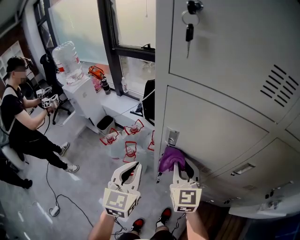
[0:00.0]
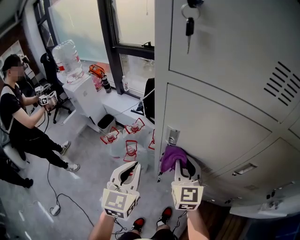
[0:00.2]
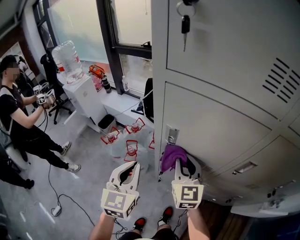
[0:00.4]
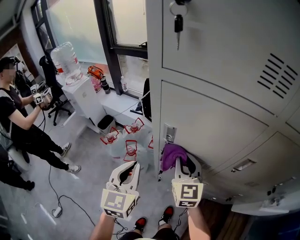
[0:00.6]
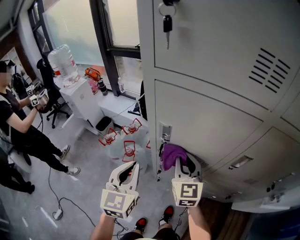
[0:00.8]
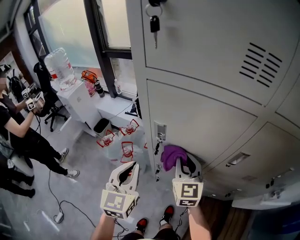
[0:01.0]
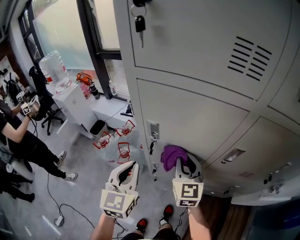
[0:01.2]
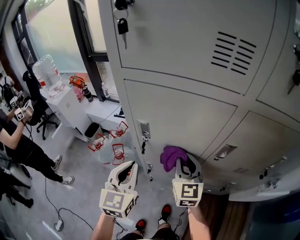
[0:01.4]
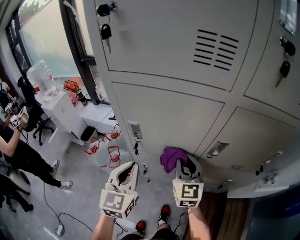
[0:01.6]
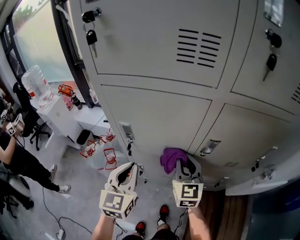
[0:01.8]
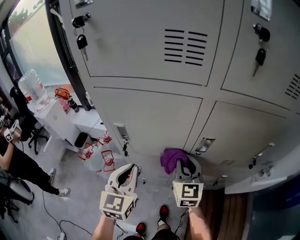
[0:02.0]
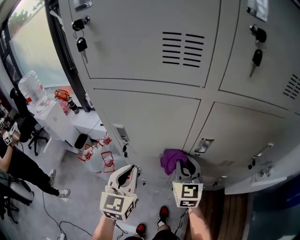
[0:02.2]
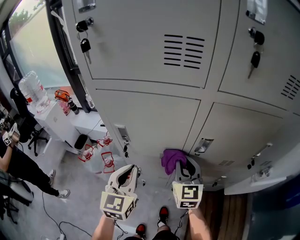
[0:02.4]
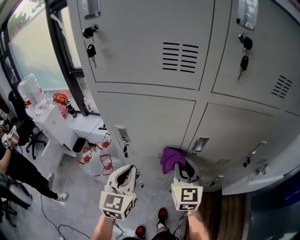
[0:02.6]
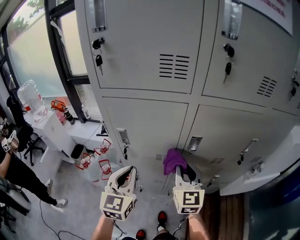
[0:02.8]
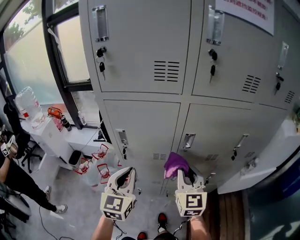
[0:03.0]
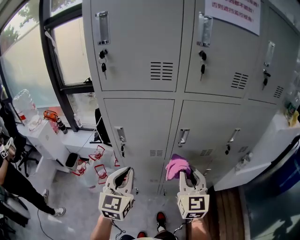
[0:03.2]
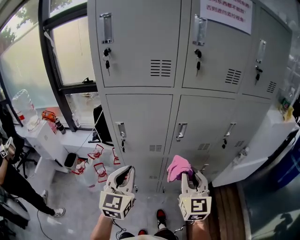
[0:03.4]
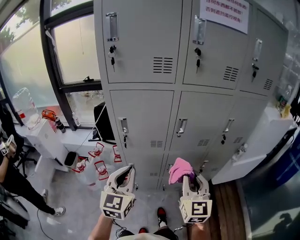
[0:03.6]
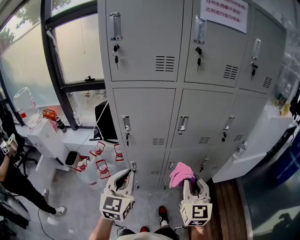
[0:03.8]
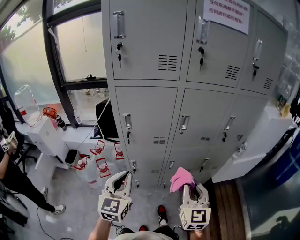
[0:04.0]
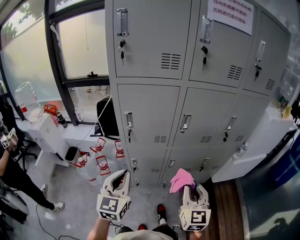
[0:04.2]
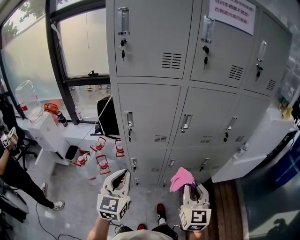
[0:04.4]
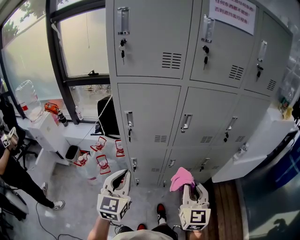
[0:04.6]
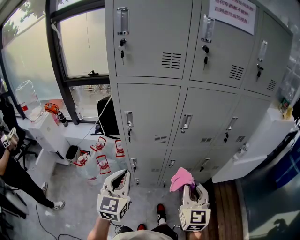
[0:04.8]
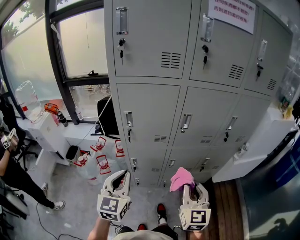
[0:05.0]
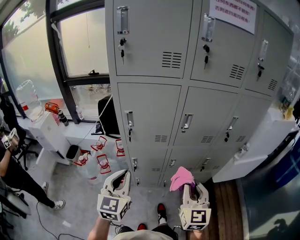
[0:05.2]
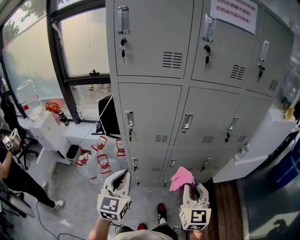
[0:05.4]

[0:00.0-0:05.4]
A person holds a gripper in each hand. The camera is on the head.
0:00.0 to 0:01.4: Both grippers travel together to the right, roughly 10 cm.
0:01.4 to 0:02.8: The left gripper travels to the right by roughly 5 cm, while the right gripper travels to the right, backward and upward by some 15 cm.
0:02.8 to 0:04.0: The right gripper is displaced backward by roughly 20 cm. The left gripper moves backward, some 15 cm.
0:04.0 to 0:05.4: Both grippers stay about where they are.

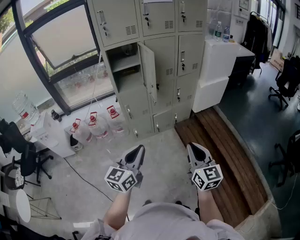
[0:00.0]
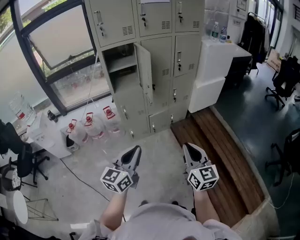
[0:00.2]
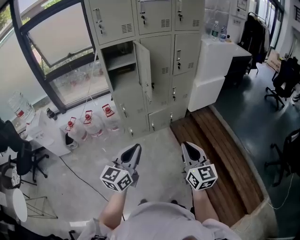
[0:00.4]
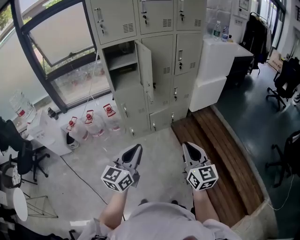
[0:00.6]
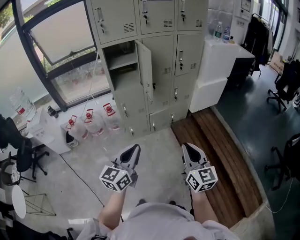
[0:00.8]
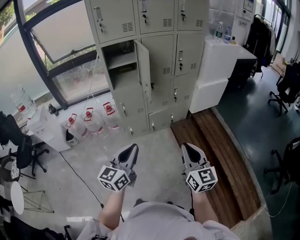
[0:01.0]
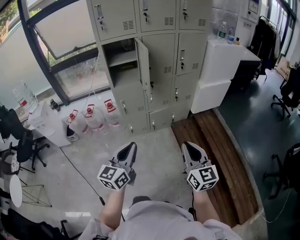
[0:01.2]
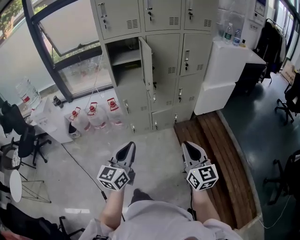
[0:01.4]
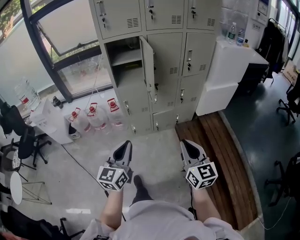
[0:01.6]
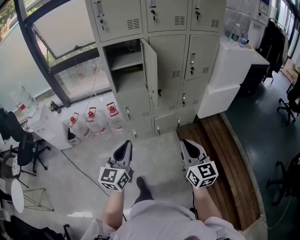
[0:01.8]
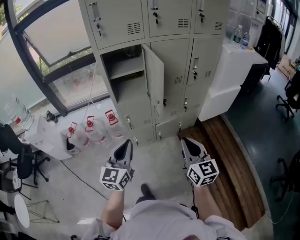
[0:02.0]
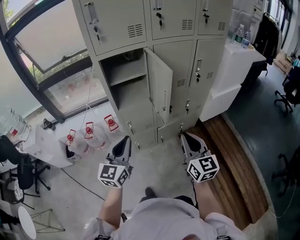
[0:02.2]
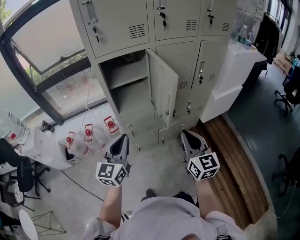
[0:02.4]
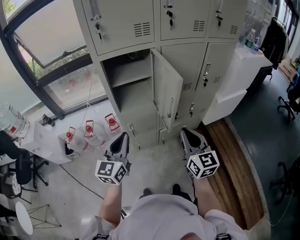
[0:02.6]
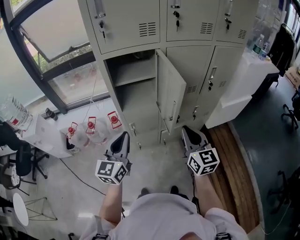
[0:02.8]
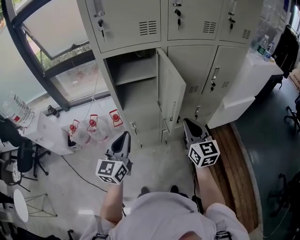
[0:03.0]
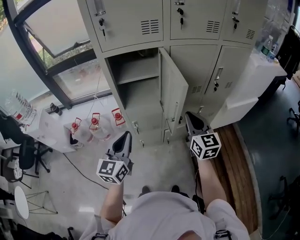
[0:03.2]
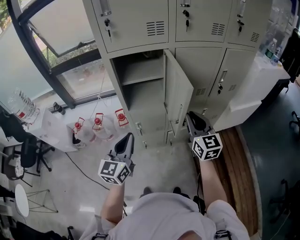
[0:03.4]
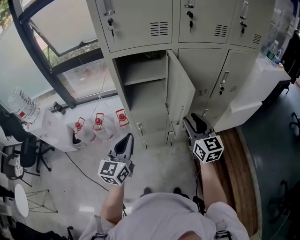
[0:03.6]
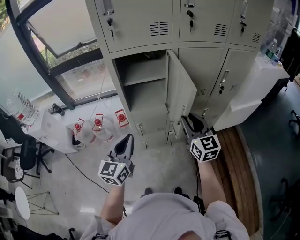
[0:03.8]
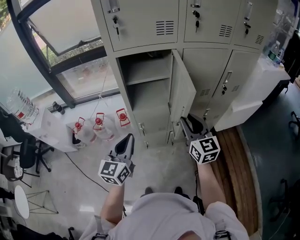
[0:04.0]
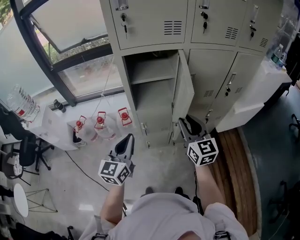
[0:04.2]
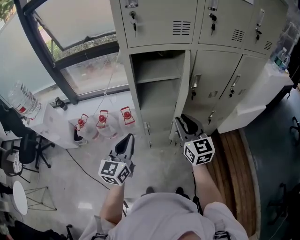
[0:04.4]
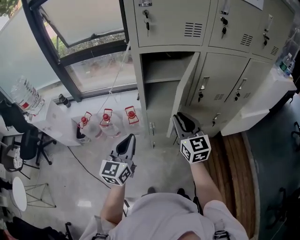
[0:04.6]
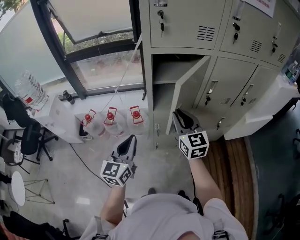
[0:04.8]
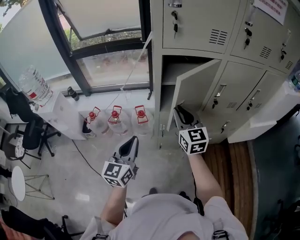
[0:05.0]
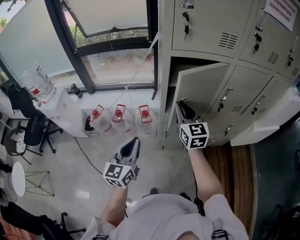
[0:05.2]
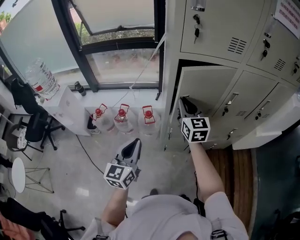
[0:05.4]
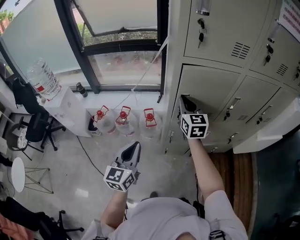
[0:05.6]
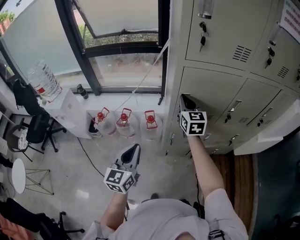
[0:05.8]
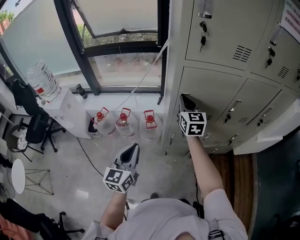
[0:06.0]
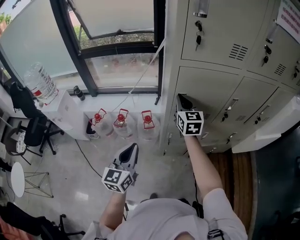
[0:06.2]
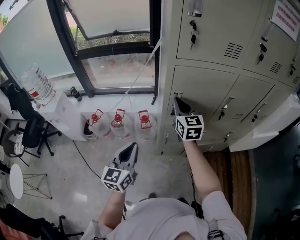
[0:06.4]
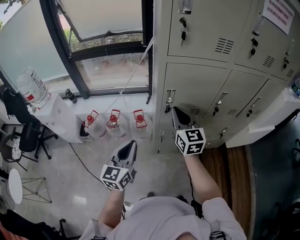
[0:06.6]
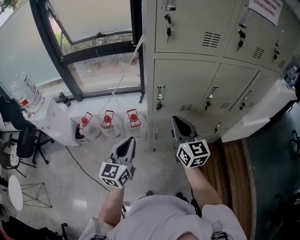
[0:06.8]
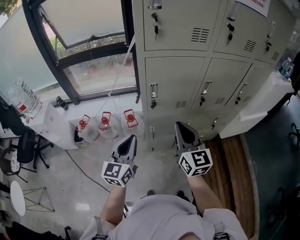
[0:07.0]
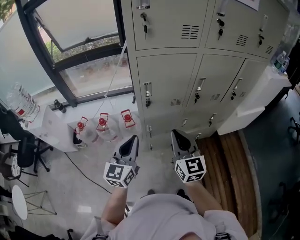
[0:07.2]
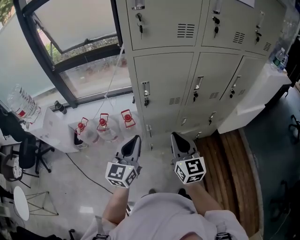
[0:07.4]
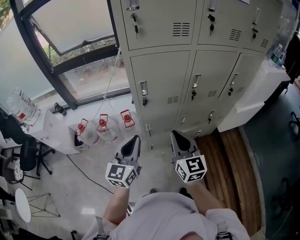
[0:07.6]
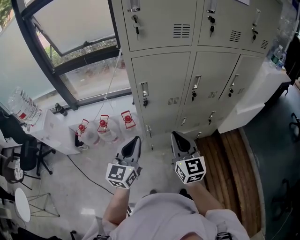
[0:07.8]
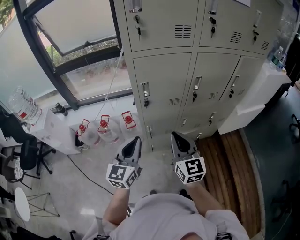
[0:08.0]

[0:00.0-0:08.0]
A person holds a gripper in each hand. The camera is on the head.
0:00.0 to 0:01.6: Both grippers travel together forward, approximately 5 cm.
0:01.6 to 0:03.2: Both grippers travel together forward, some 35 cm.
0:03.2 to 0:04.8: The right gripper travels to the left by some 20 cm; the left gripper goes approximately 15 cm to the left.
0:04.8 to 0:06.4: The right gripper heads forward and to the left, covering about 15 cm; the left gripper goes approximately 5 cm to the left.
0:06.4 to 0:08.0: The right gripper goes approximately 25 cm backward and to the right. Meanwhile the left gripper goes roughly 10 cm to the right.

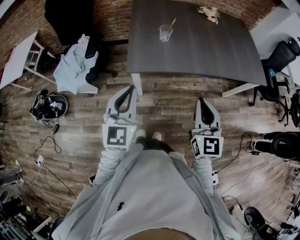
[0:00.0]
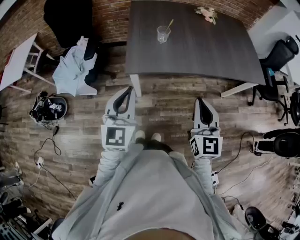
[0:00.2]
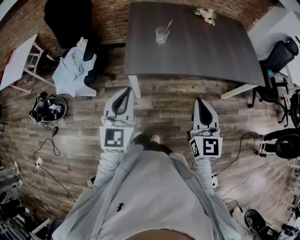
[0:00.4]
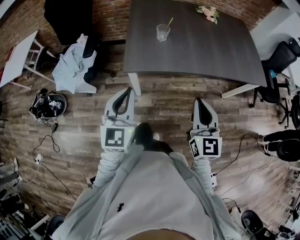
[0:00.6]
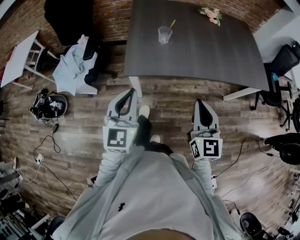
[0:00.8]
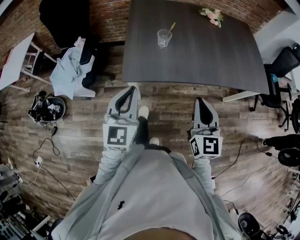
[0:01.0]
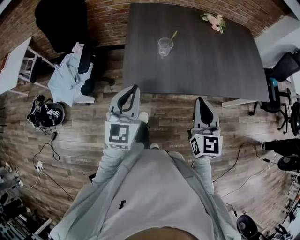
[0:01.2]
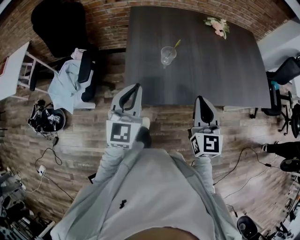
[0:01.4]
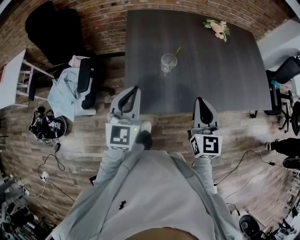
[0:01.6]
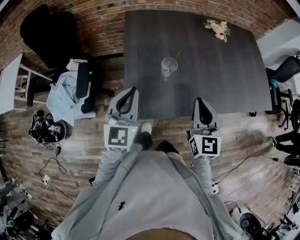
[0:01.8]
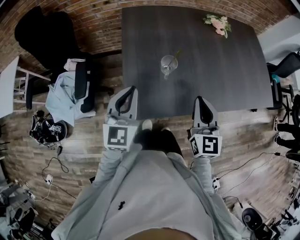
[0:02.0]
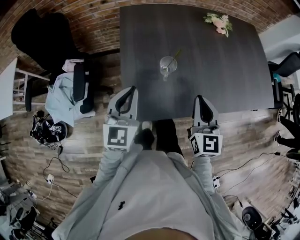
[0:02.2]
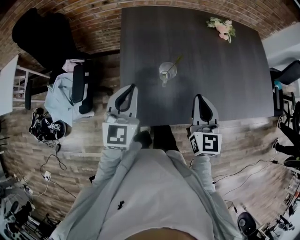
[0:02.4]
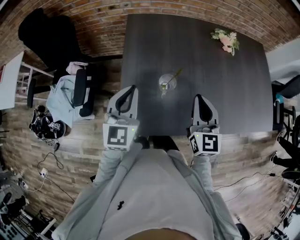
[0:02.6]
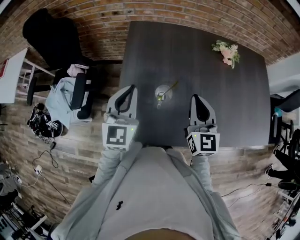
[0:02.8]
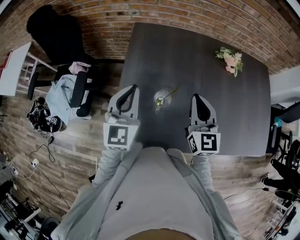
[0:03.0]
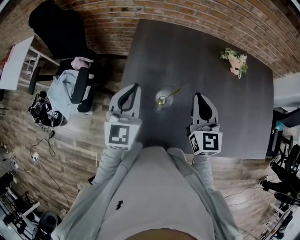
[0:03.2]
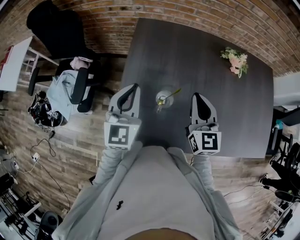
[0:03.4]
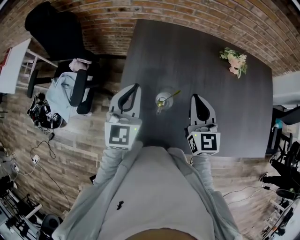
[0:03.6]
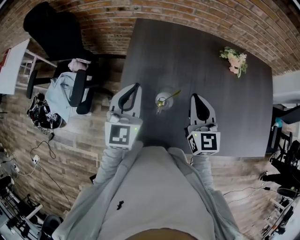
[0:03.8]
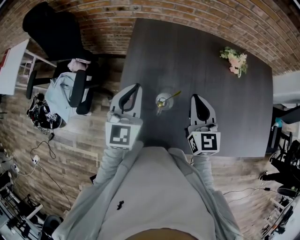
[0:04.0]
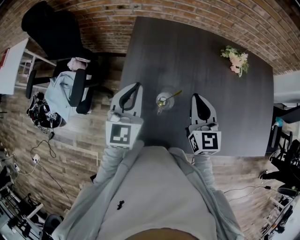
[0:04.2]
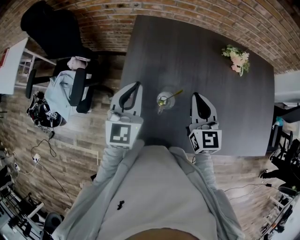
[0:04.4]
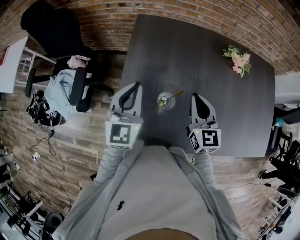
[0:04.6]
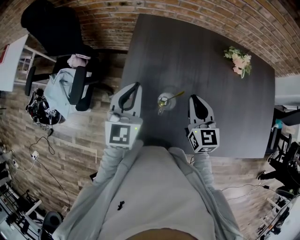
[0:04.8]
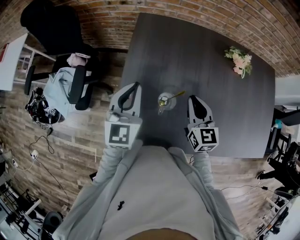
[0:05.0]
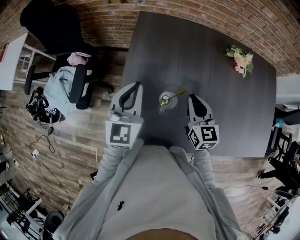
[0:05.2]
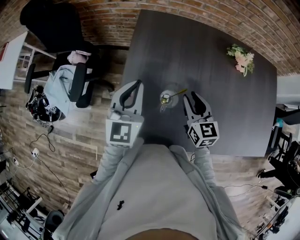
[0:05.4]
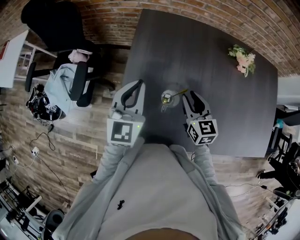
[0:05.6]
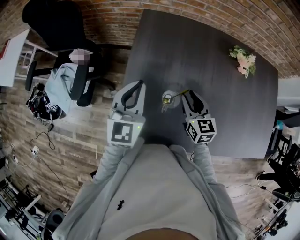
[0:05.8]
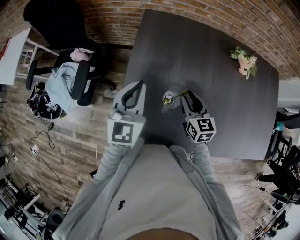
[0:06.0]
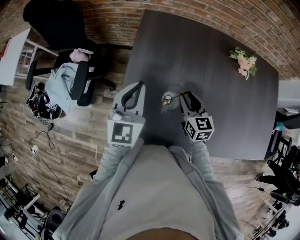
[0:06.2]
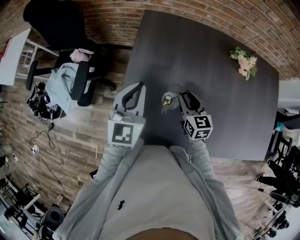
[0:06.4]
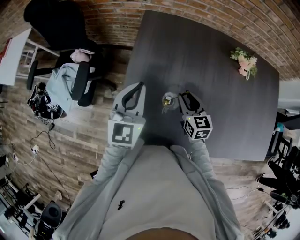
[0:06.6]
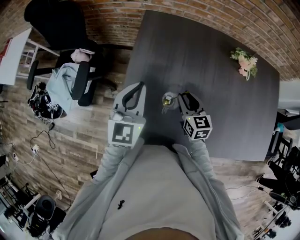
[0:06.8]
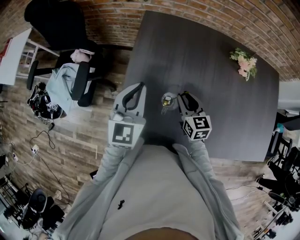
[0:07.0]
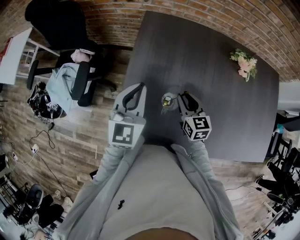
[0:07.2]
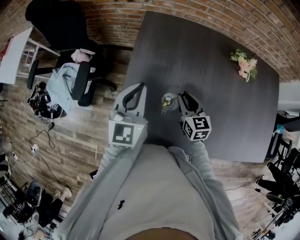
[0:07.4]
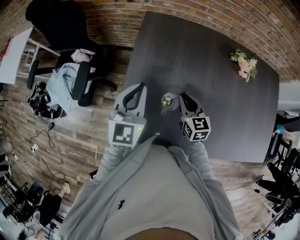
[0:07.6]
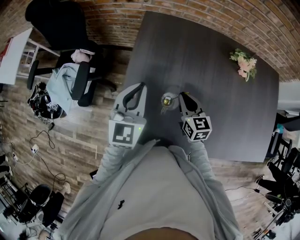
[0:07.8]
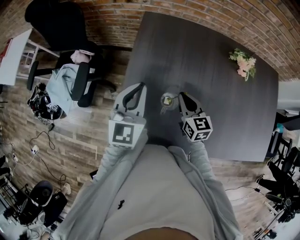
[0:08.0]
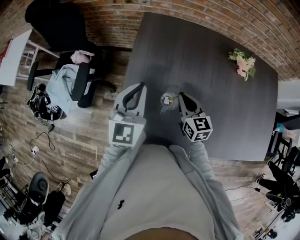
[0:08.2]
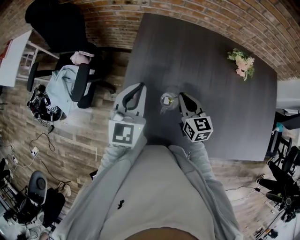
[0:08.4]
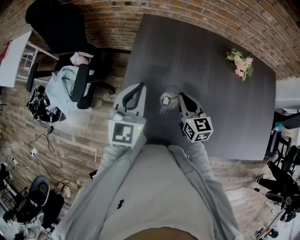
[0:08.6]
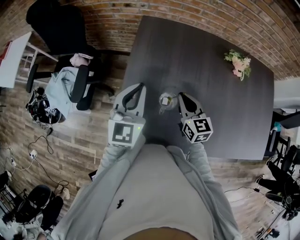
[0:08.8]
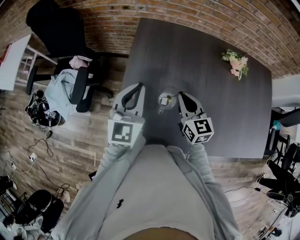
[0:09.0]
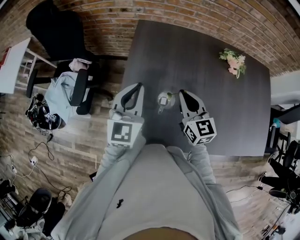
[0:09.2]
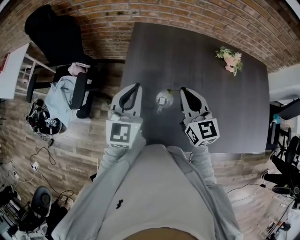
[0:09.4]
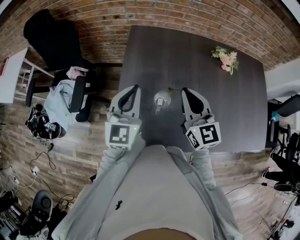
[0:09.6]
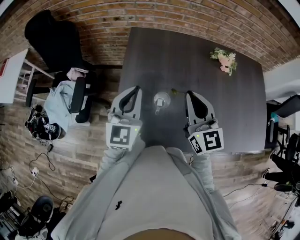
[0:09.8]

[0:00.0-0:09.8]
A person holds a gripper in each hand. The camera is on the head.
0:00.0 to 0:01.4: The grippers both shift forward by approximately 20 cm.
0:01.4 to 0:02.8: Both grippers travel together forward, roughly 20 cm.
0:02.8 to 0:04.2: The right gripper moves forward, approximately 5 cm.
0:04.2 to 0:05.6: The right gripper moves downward, about 10 cm, and opens up.
0:05.6 to 0:07.0: The grippers make only small movements.
0:07.0 to 0:08.4: The right gripper closes its fingers.
0:08.4 to 0:09.8: The right gripper travels upward by approximately 20 cm, and turns by roughly 30 degrees.

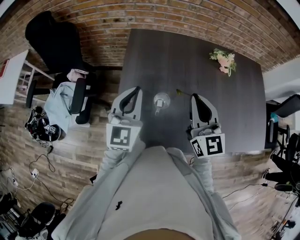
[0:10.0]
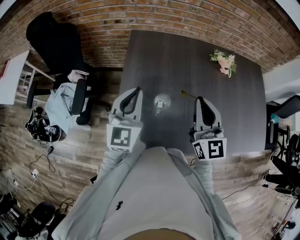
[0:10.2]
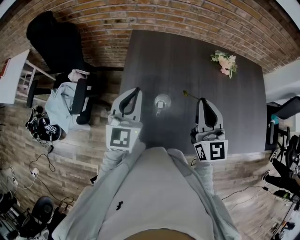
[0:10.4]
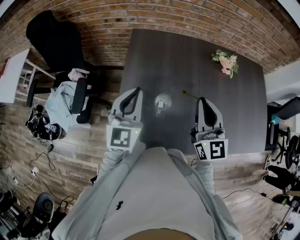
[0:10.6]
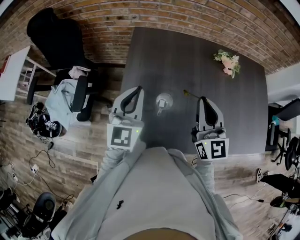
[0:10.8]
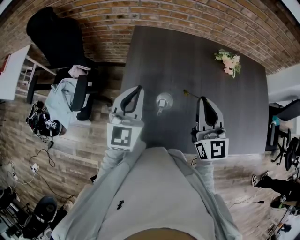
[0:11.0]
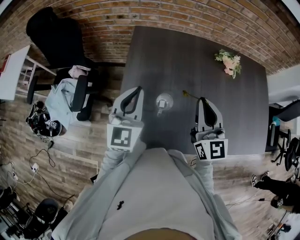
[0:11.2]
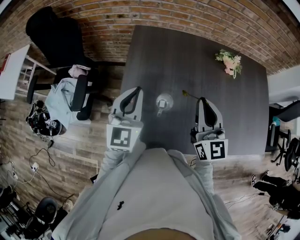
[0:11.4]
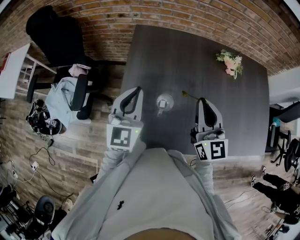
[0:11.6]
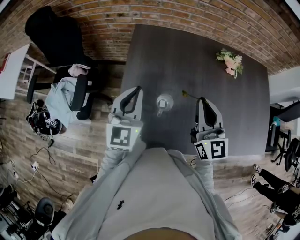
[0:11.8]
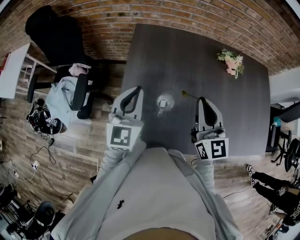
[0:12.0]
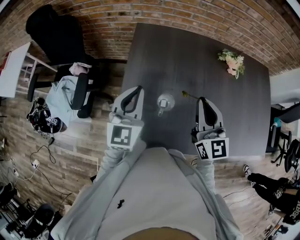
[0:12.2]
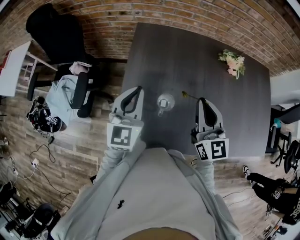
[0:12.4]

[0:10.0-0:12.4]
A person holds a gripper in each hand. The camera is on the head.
0:10.0 to 0:12.4: There are only small adjustments of the grippers.
